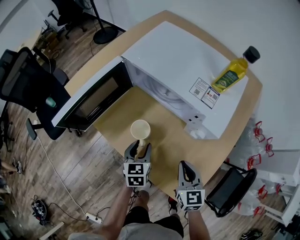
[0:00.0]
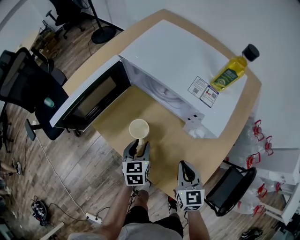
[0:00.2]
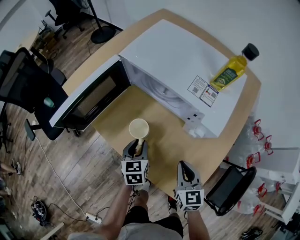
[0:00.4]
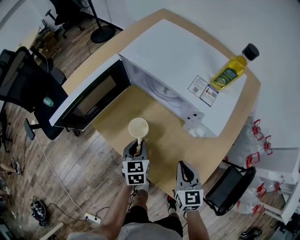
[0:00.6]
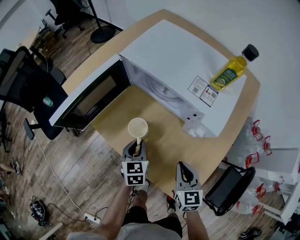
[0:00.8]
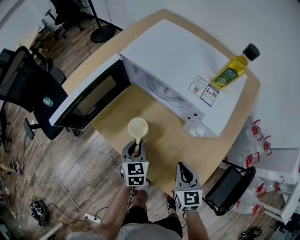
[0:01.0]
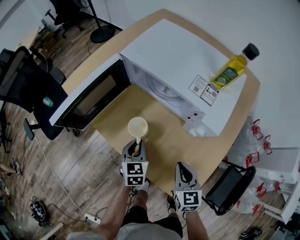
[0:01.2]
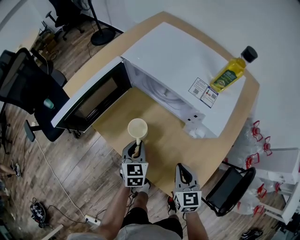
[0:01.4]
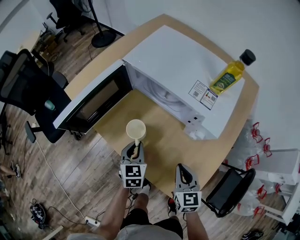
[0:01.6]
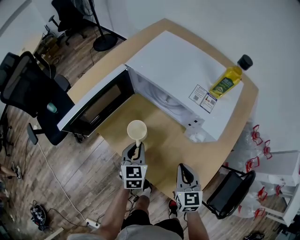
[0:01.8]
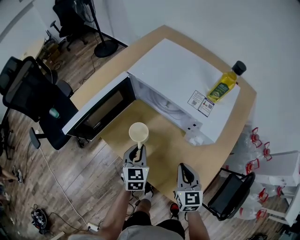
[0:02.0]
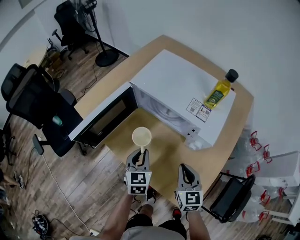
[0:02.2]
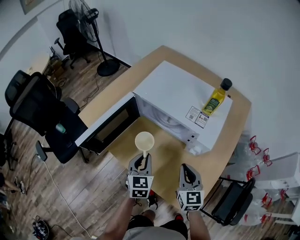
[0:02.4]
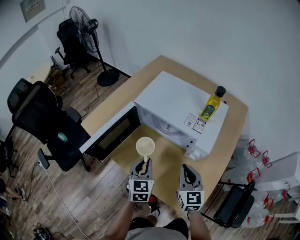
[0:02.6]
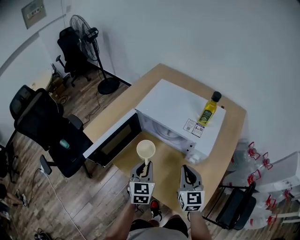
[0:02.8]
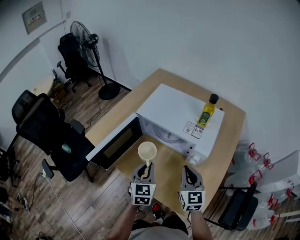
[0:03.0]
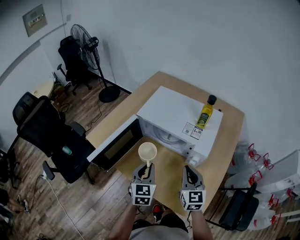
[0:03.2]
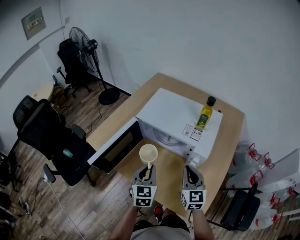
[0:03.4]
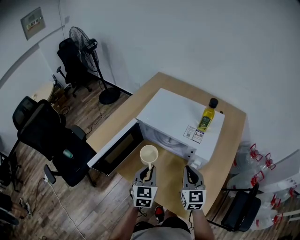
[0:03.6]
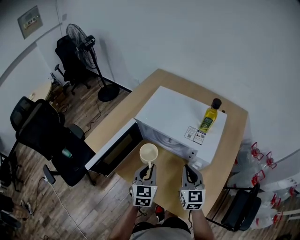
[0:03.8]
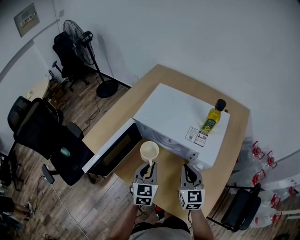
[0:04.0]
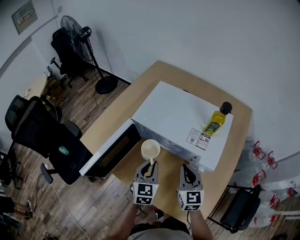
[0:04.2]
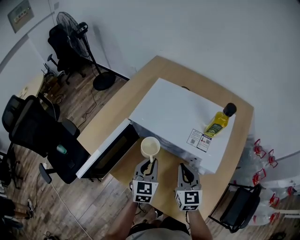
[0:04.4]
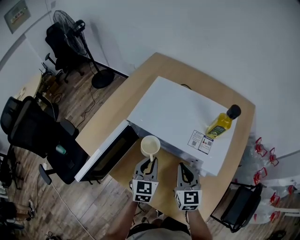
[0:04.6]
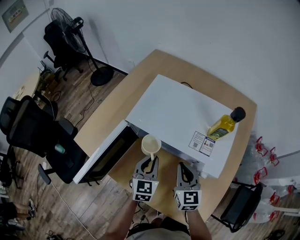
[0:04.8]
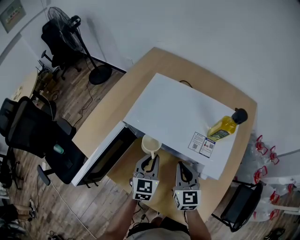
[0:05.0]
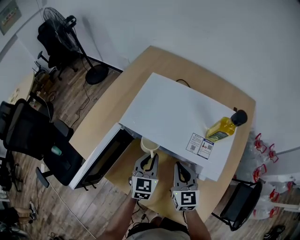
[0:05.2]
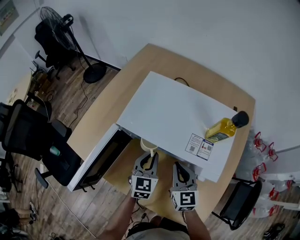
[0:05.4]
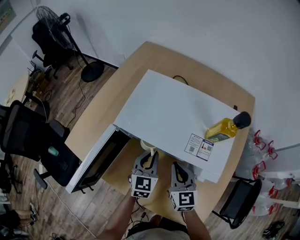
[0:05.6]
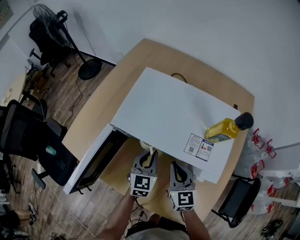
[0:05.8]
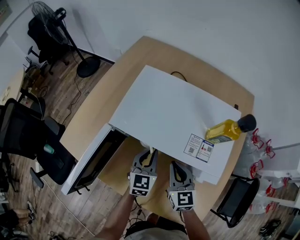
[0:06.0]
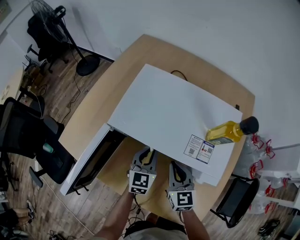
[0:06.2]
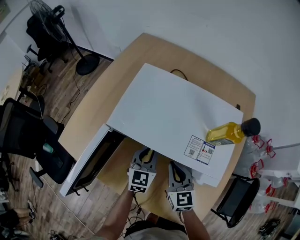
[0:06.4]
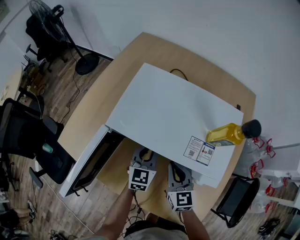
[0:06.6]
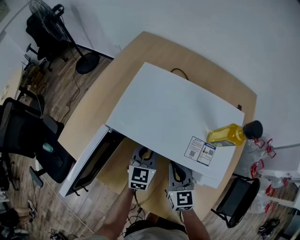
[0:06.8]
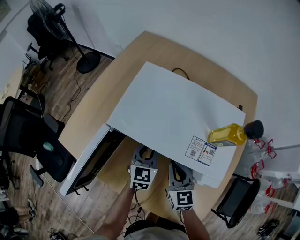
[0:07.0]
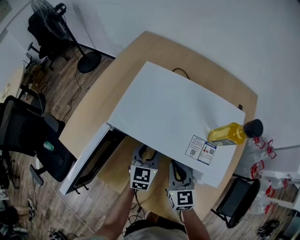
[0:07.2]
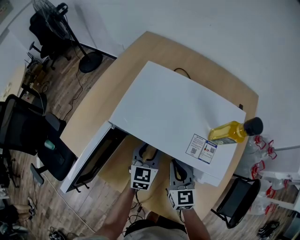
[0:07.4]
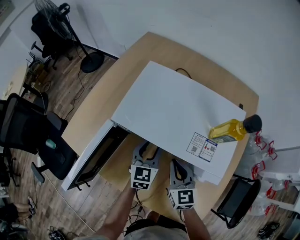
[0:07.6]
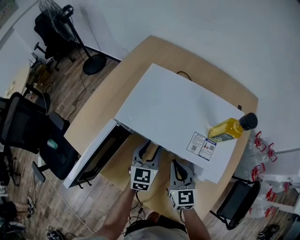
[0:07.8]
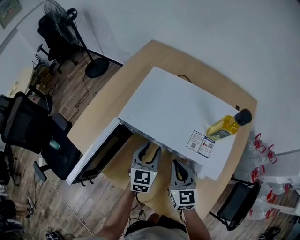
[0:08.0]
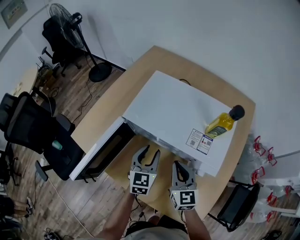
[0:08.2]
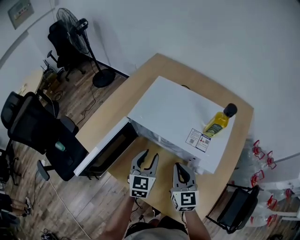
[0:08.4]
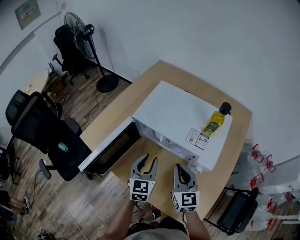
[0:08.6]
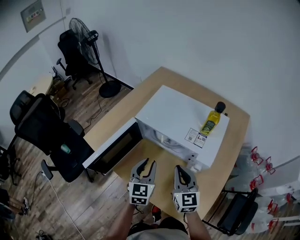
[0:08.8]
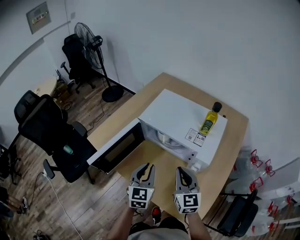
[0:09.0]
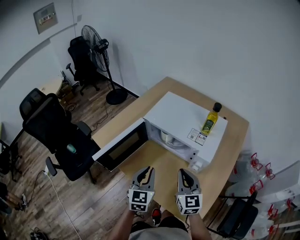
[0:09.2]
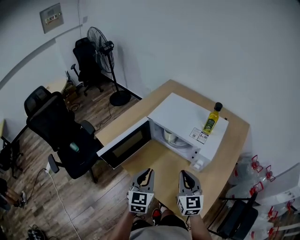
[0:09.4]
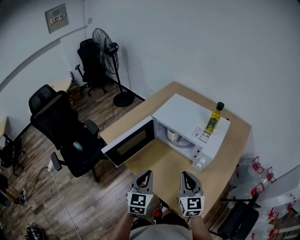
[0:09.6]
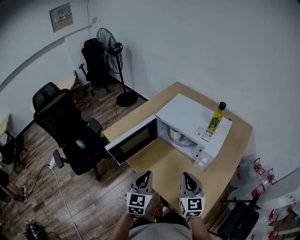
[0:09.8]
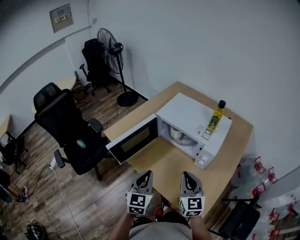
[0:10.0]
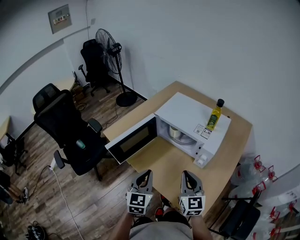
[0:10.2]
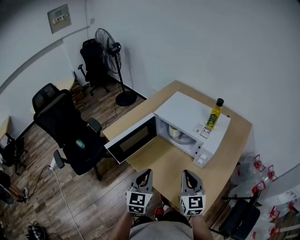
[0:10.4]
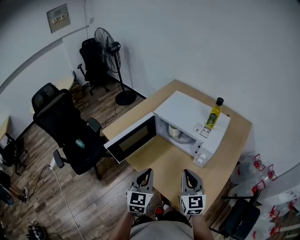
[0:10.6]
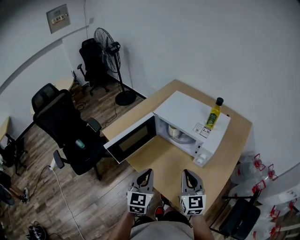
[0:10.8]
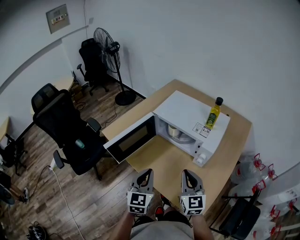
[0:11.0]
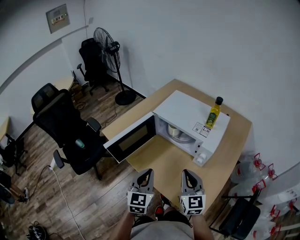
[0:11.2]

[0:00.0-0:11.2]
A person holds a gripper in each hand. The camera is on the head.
0:00.0 to 0:01.6: The left gripper closes.
0:01.6 to 0:03.2: The right gripper moves upward and forward, approximately 15 cm; the left gripper travels upward by roughly 15 cm.
0:03.2 to 0:04.8: Both grippers move forward and downward, some 15 cm.
0:04.8 to 0:06.4: The left gripper travels forward by some 5 cm.
0:06.4 to 0:08.0: The left gripper opens its fingers.
0:08.0 to 0:09.6: Both grippers move backward and upward, roughly 25 cm. The left gripper closes.
0:09.6 to 0:11.2: The grippers move only a little.

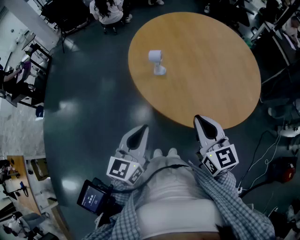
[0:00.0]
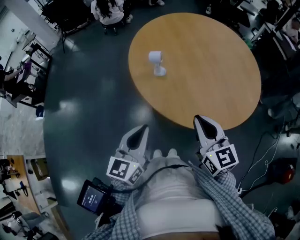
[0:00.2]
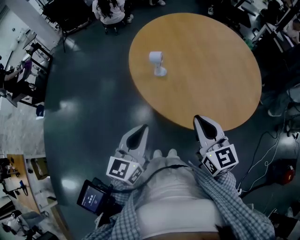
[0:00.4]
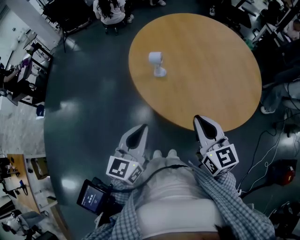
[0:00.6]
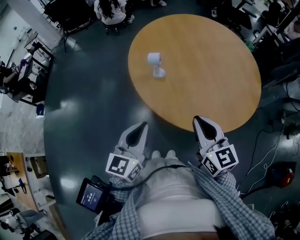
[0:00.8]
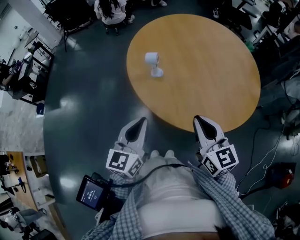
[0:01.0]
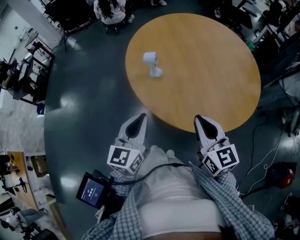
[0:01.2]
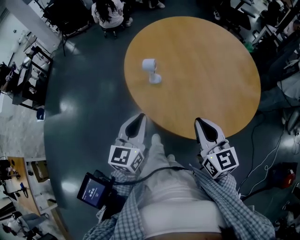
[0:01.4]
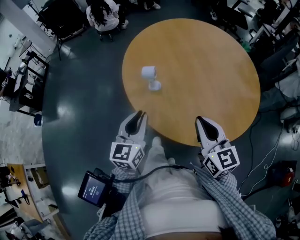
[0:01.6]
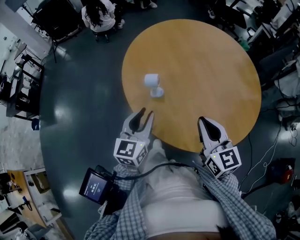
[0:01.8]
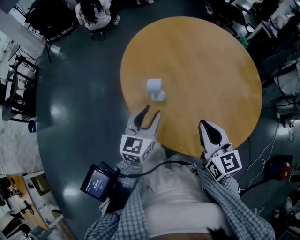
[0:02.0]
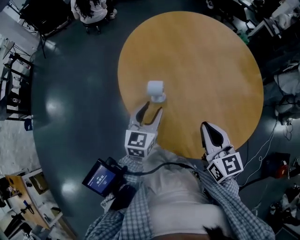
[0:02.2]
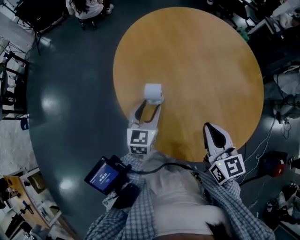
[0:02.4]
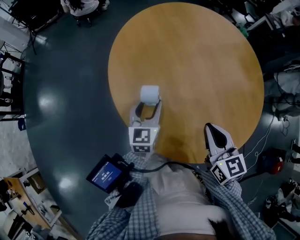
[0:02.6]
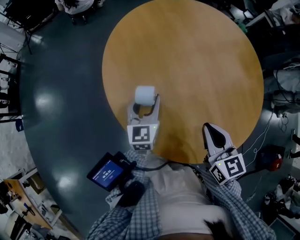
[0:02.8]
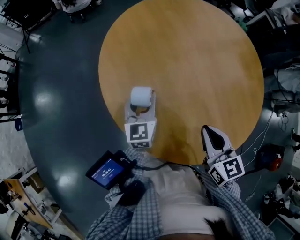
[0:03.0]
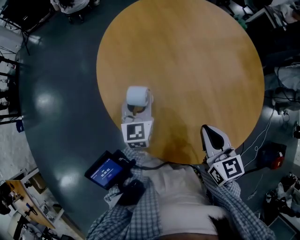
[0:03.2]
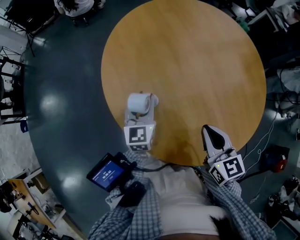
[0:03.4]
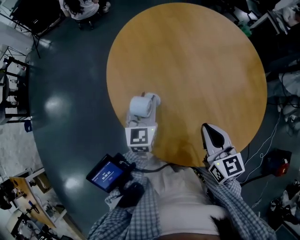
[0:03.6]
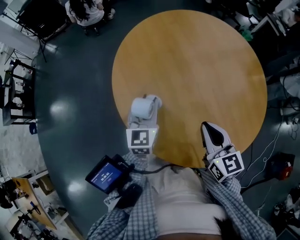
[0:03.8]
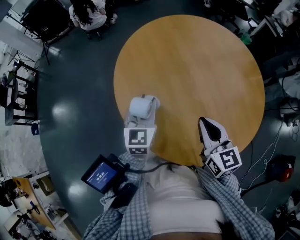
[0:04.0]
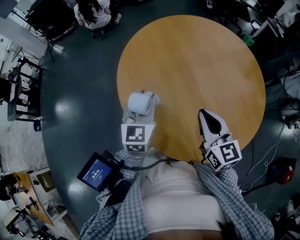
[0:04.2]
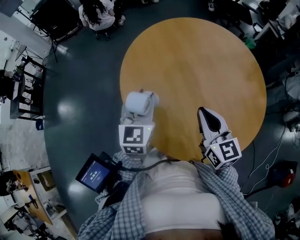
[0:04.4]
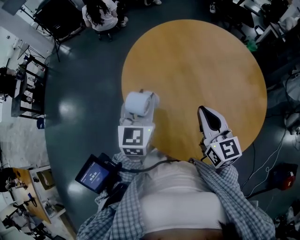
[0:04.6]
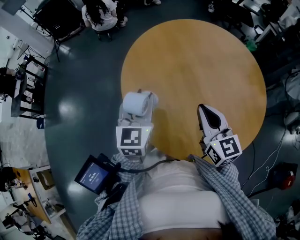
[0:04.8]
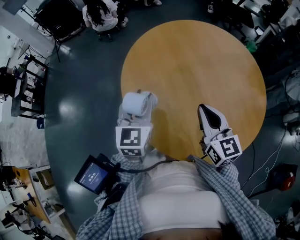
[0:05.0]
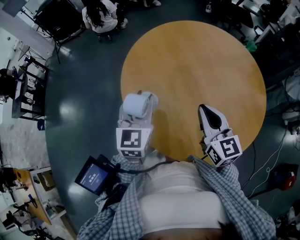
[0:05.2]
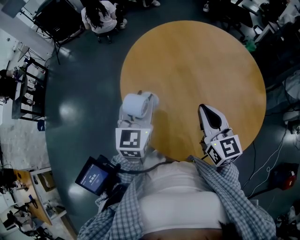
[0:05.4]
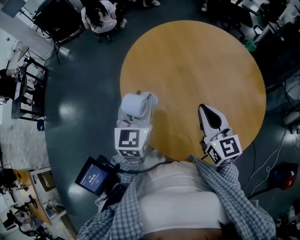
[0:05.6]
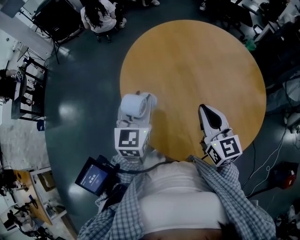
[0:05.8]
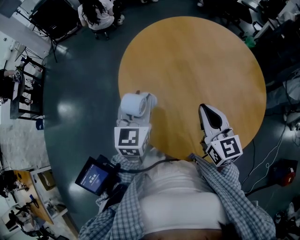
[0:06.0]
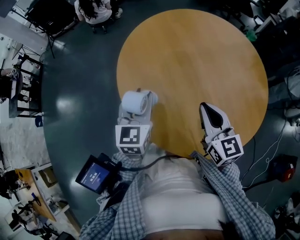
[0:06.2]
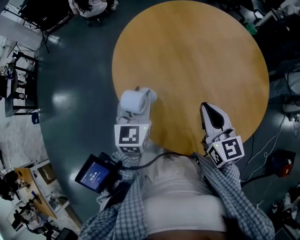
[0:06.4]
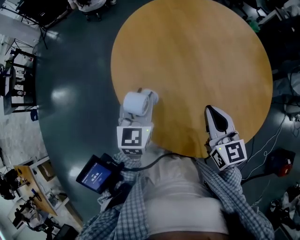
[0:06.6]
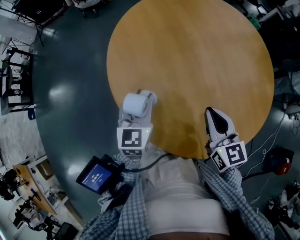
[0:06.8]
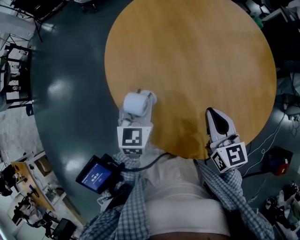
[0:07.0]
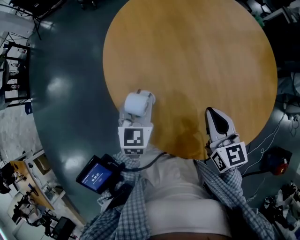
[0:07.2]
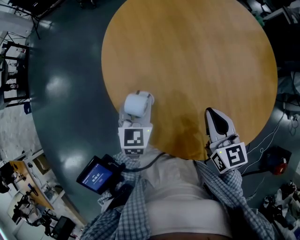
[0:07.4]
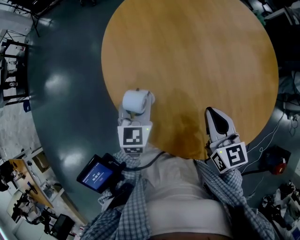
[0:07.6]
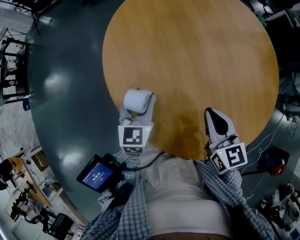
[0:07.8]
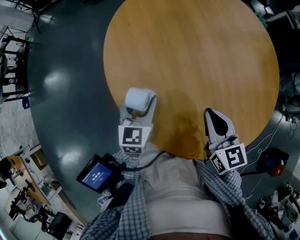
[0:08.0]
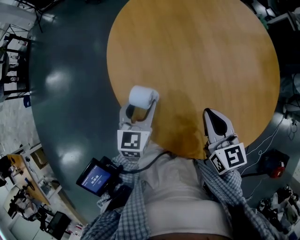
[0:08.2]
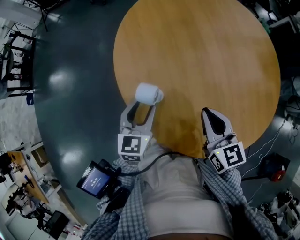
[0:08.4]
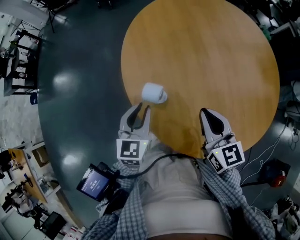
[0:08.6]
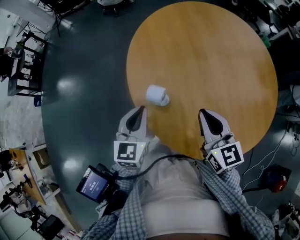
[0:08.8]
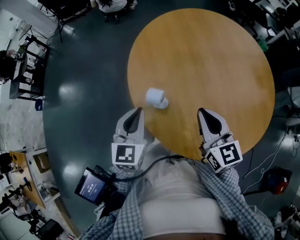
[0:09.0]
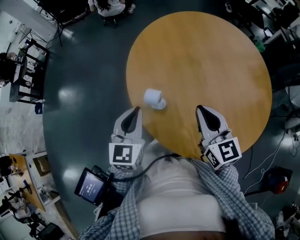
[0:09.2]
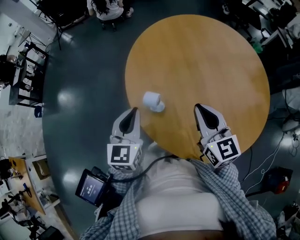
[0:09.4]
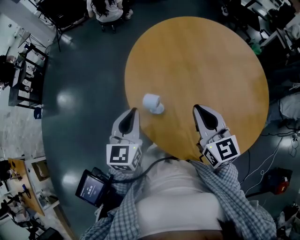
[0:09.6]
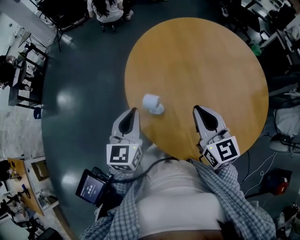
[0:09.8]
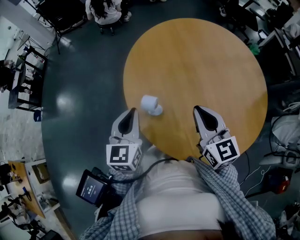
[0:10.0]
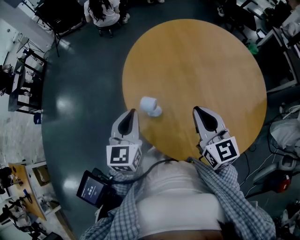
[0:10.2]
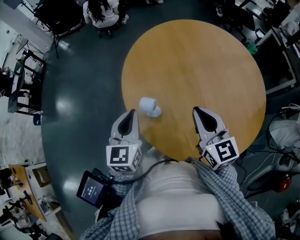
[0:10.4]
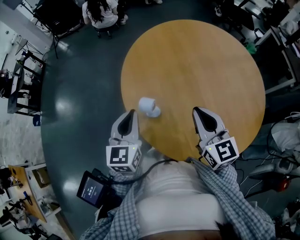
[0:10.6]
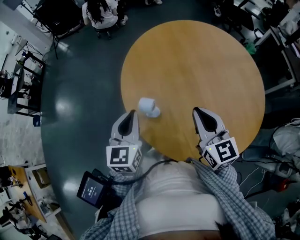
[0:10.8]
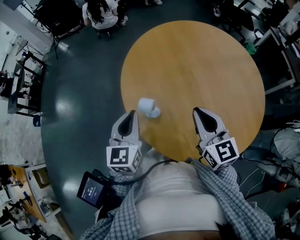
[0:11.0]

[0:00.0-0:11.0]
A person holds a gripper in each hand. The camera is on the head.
0:00.0 to 0:01.6: The left gripper is displaced forward by about 10 cm; the right gripper travels forward by roughly 5 cm.
0:01.6 to 0:03.2: The right gripper shifts about 10 cm forward and downward. The left gripper goes about 25 cm forward and downward, and opens up.
0:03.2 to 0:04.8: The left gripper is displaced upward by about 15 cm. Meanwhile the right gripper is displaced upward by about 10 cm.
0:04.8 to 0:06.2: The grippers stay close to where they were, moving slightly.
0:06.2 to 0:07.8: The left gripper goes approximately 15 cm downward, while the right gripper goes approximately 10 cm downward.
0:07.8 to 0:09.4: Both grippers travel together upward and to the left, roughly 15 cm. The left gripper closes up.
0:09.4 to 0:11.0: The grippers make only small movements.

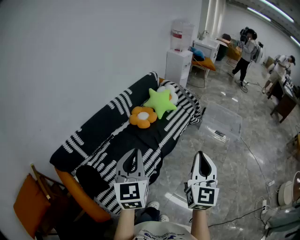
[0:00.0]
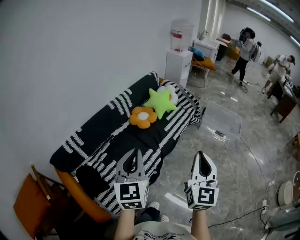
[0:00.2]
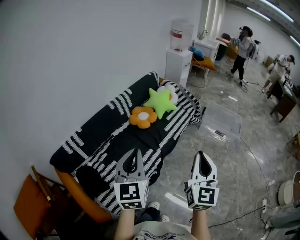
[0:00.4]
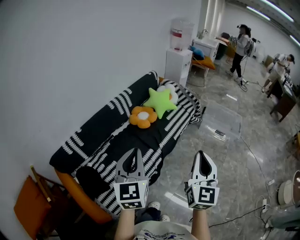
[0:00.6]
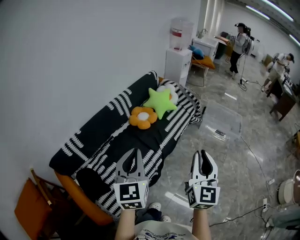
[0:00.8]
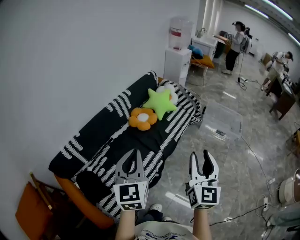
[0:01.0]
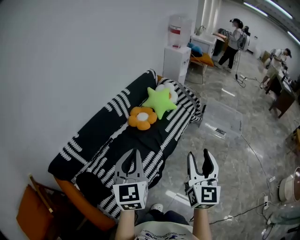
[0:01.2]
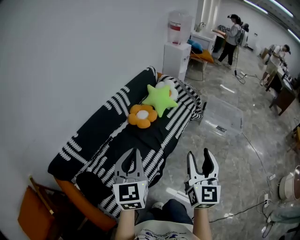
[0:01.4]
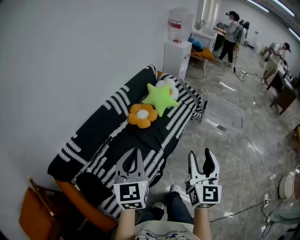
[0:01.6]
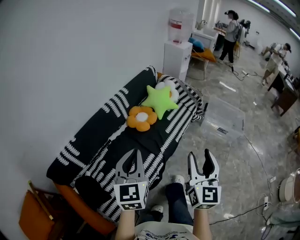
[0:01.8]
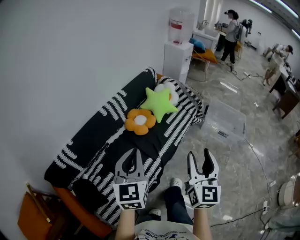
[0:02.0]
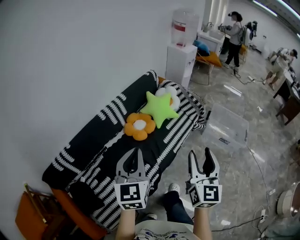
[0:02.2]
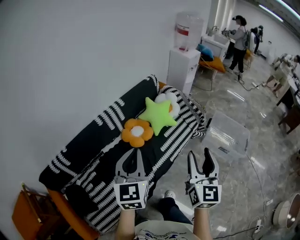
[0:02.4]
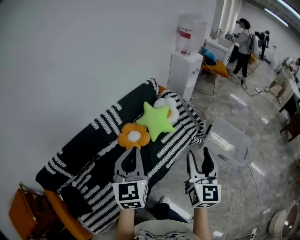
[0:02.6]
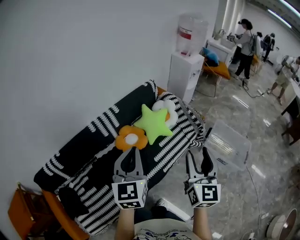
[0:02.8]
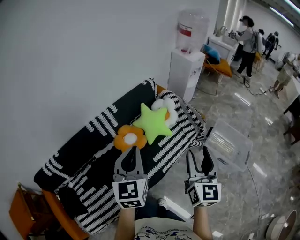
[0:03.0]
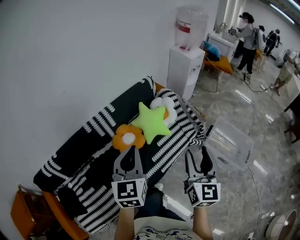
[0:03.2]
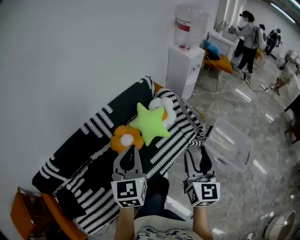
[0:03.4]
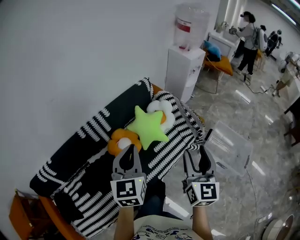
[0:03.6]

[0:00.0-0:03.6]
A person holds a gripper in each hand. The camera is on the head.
0:00.0 to 0:01.8: Both grippers move forward, some 15 cm. The right gripper opens.
0:01.8 to 0:03.6: Both grippers are carried forward and to the right, some 50 cm.
